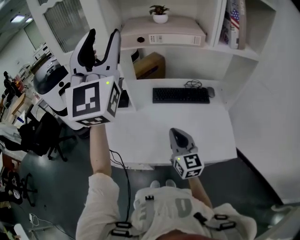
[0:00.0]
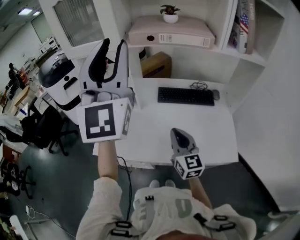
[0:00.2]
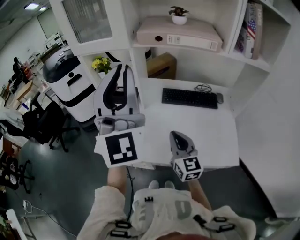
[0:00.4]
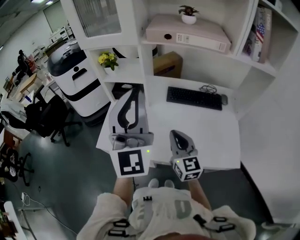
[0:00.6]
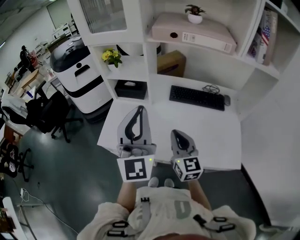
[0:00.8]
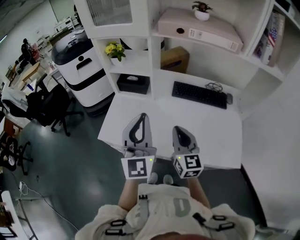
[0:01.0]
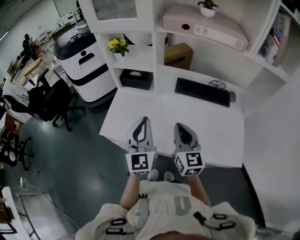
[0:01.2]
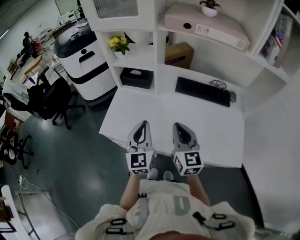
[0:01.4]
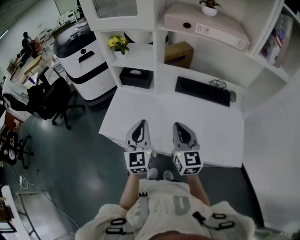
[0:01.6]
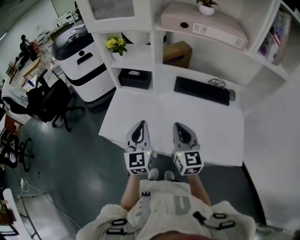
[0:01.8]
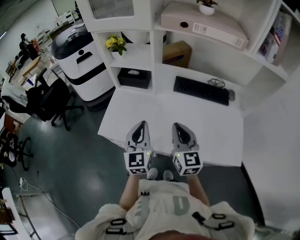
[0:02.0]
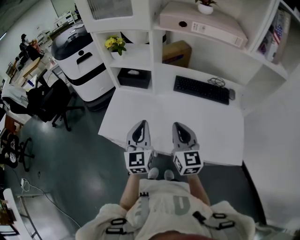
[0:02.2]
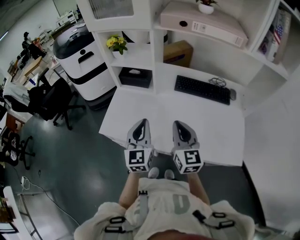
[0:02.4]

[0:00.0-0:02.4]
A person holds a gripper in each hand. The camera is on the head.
0:00.0 to 0:01.2: The left gripper heads downward, covering roughly 35 cm, rotates about 30 degrees, and closes. The right gripper is displaced to the left by about 5 cm.
0:01.2 to 0:02.4: The left gripper moves downward, roughly 5 cm.

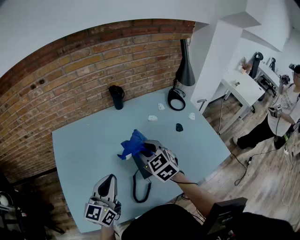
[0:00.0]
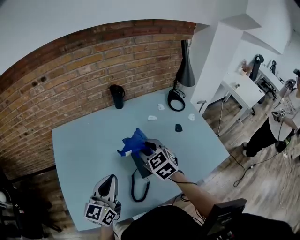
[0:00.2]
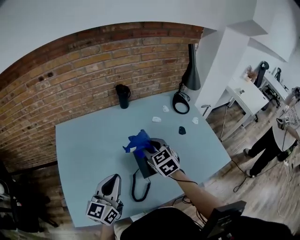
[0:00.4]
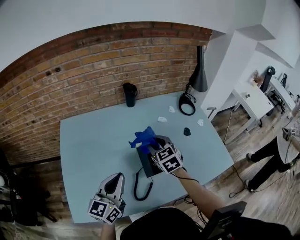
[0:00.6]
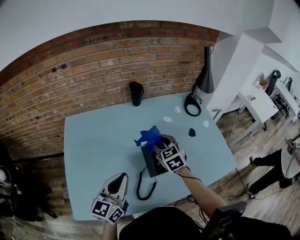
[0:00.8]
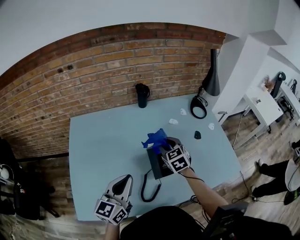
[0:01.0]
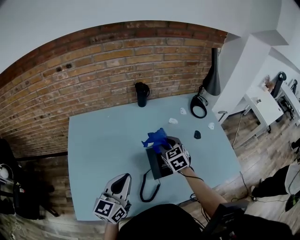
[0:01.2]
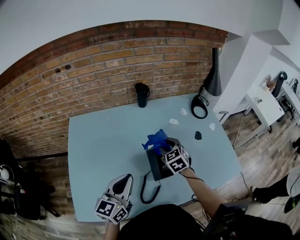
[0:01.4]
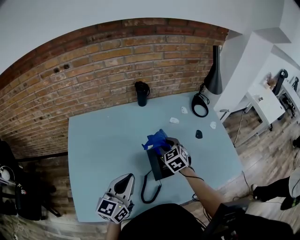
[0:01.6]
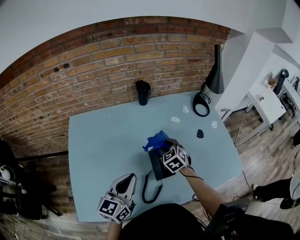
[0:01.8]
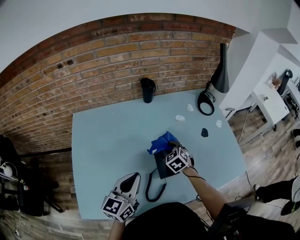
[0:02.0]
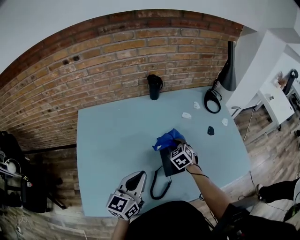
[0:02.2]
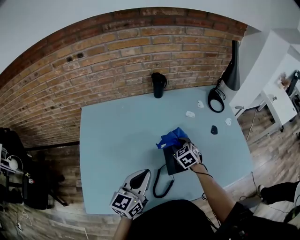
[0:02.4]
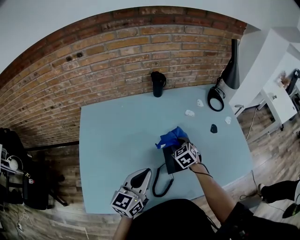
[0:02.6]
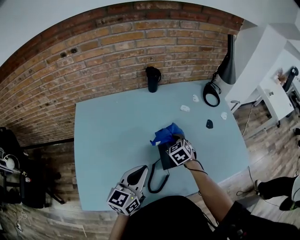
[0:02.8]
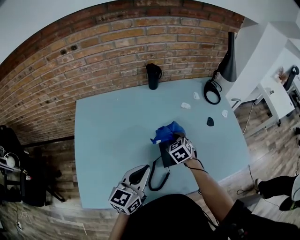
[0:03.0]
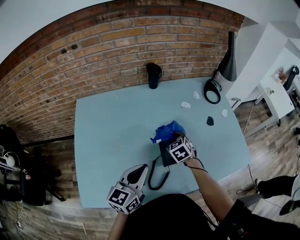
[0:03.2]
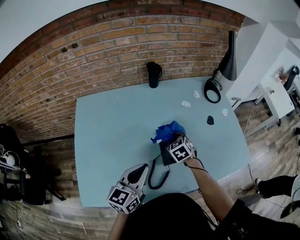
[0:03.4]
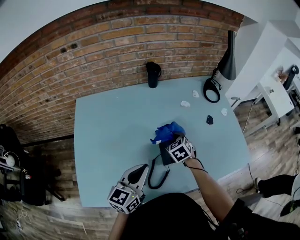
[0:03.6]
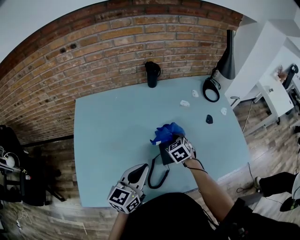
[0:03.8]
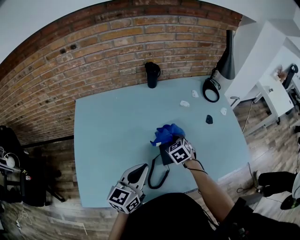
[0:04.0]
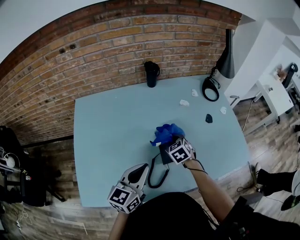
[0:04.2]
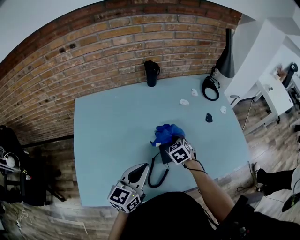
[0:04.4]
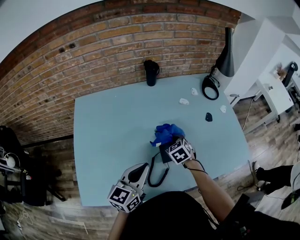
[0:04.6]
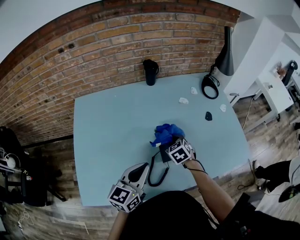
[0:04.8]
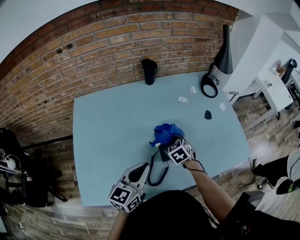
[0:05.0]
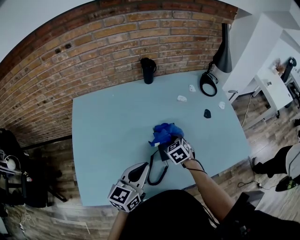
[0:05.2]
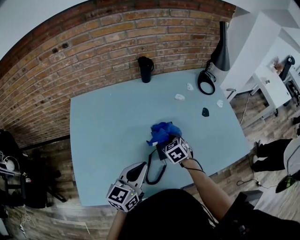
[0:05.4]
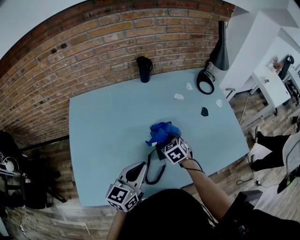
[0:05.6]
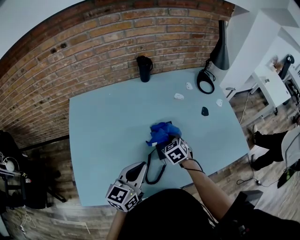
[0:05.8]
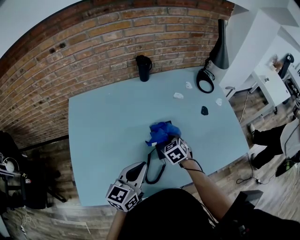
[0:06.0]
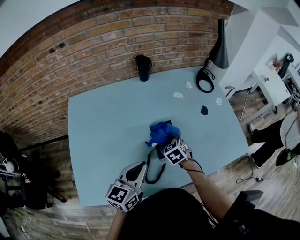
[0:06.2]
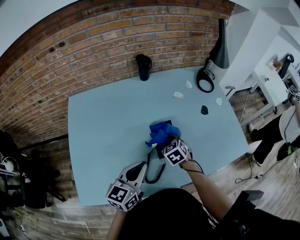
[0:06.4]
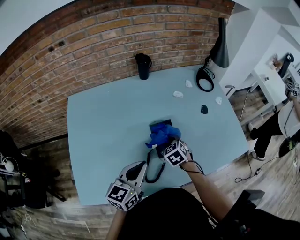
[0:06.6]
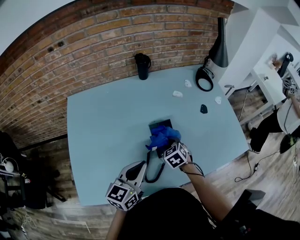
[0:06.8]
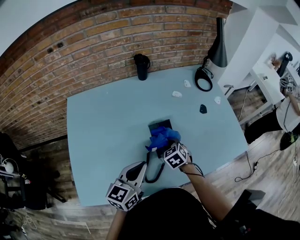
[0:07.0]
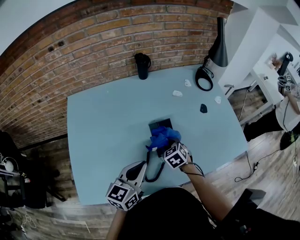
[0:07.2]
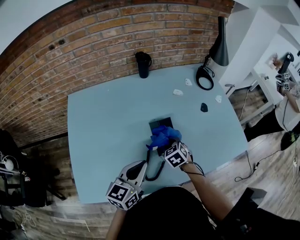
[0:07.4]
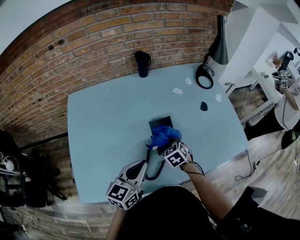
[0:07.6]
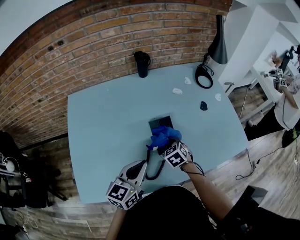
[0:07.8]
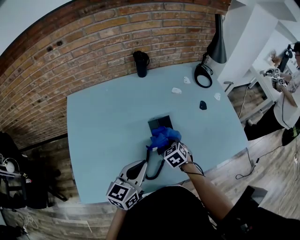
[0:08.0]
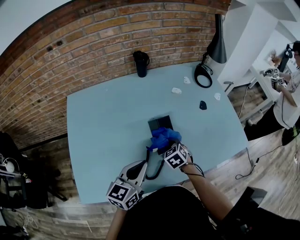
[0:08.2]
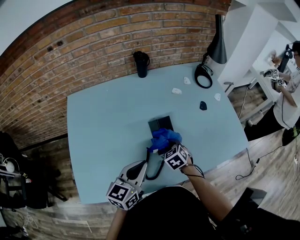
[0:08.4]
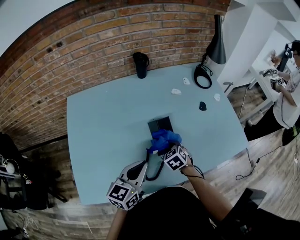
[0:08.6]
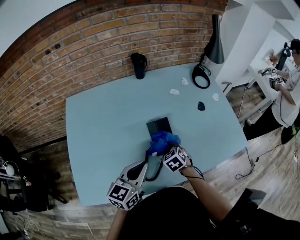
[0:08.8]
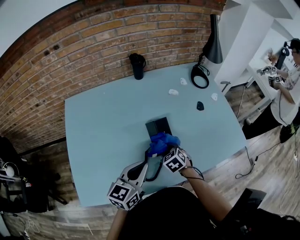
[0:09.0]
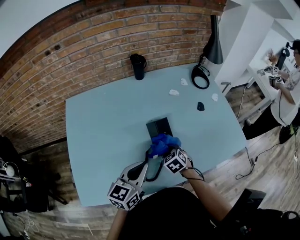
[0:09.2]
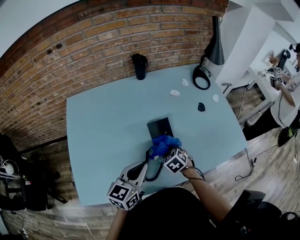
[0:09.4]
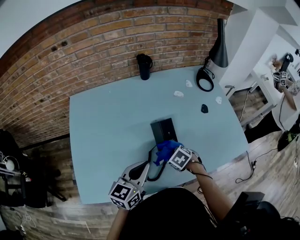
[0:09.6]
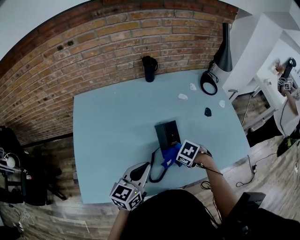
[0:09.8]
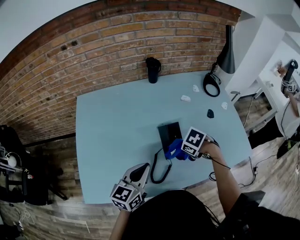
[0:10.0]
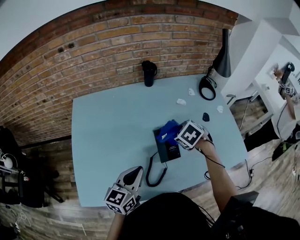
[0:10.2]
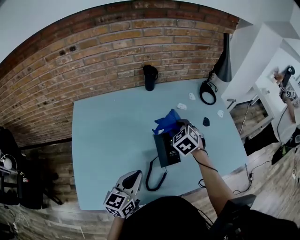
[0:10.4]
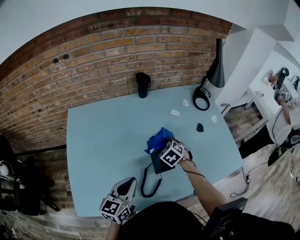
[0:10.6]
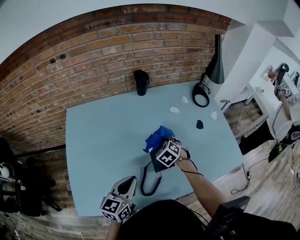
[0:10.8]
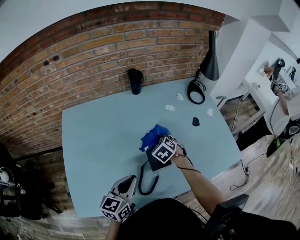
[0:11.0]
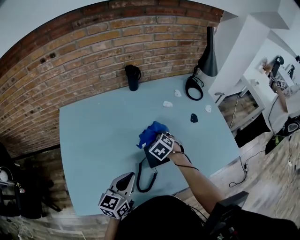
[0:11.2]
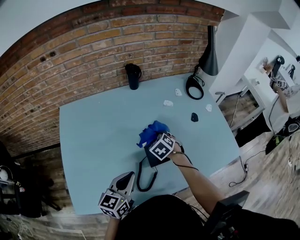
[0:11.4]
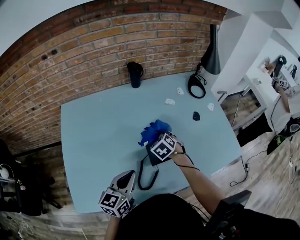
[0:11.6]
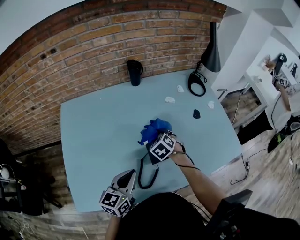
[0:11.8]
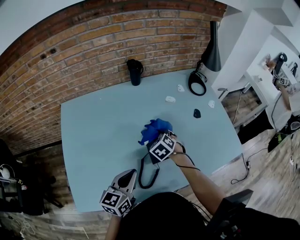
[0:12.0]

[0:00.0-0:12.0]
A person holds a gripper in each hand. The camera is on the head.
0:00.0 to 0:01.6: The right gripper shifts approximately 10 cm downward and forward.
0:01.6 to 0:03.0: The right gripper moves downward, roughly 10 cm.
0:03.0 to 0:06.0: The grippers make only small movements.
0:06.0 to 0:07.6: The grippers stay close to where they were, moving slightly.
0:07.6 to 0:09.0: There are only small adjustments of the grippers.
0:09.0 to 0:10.4: The left gripper changes place by roughly 5 cm; the right gripper is displaced upward by roughly 15 cm.
0:10.4 to 0:12.0: The right gripper goes about 10 cm downward.

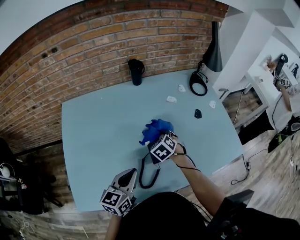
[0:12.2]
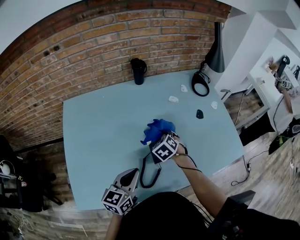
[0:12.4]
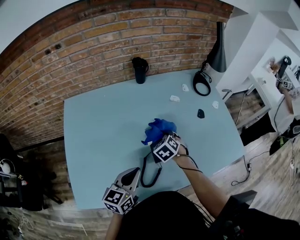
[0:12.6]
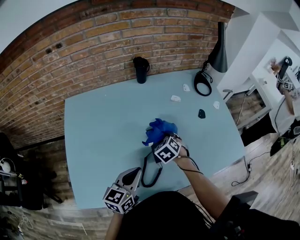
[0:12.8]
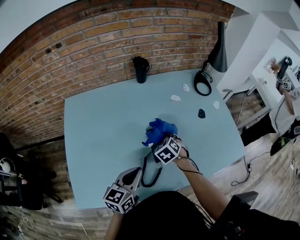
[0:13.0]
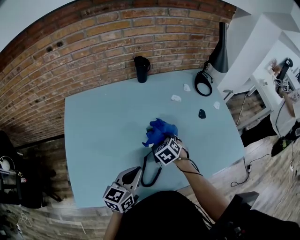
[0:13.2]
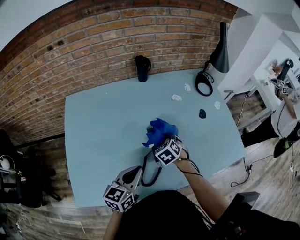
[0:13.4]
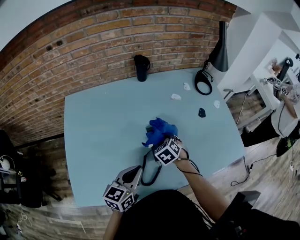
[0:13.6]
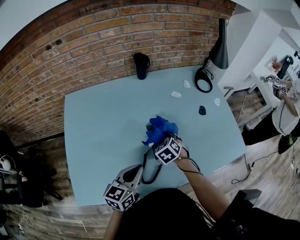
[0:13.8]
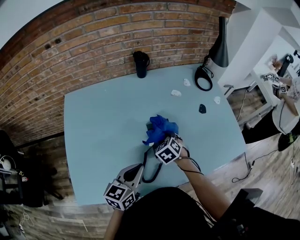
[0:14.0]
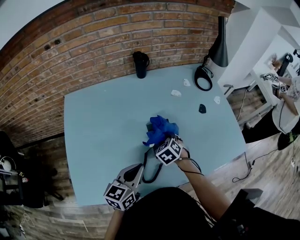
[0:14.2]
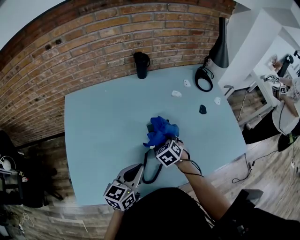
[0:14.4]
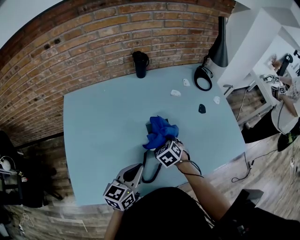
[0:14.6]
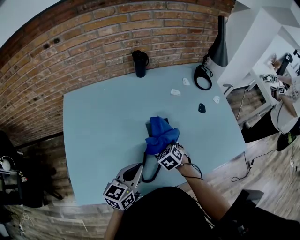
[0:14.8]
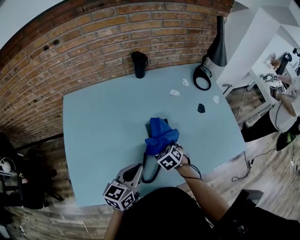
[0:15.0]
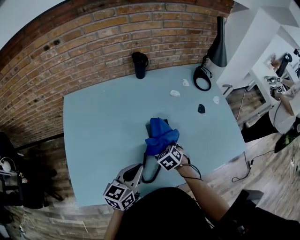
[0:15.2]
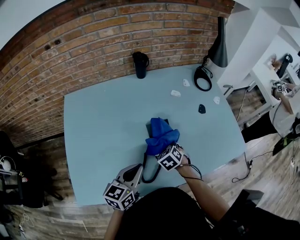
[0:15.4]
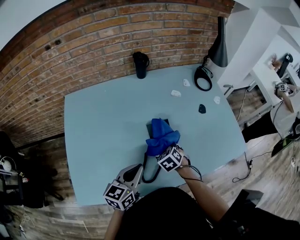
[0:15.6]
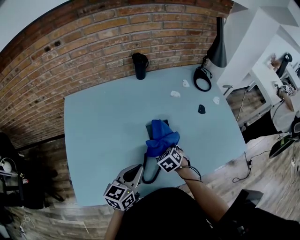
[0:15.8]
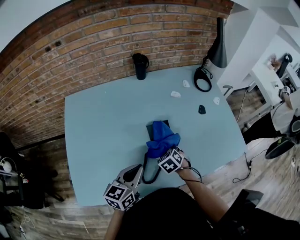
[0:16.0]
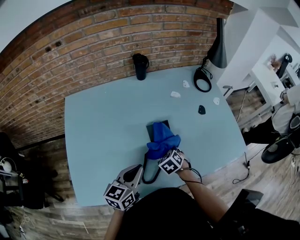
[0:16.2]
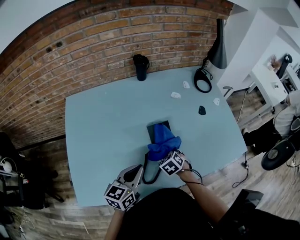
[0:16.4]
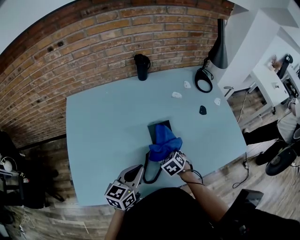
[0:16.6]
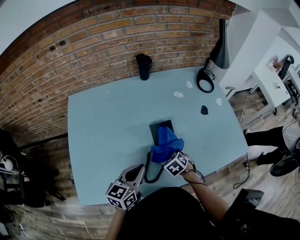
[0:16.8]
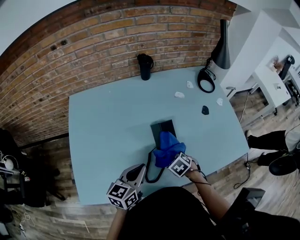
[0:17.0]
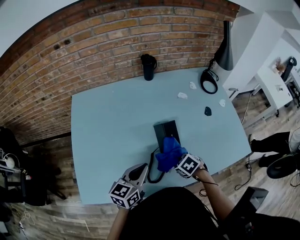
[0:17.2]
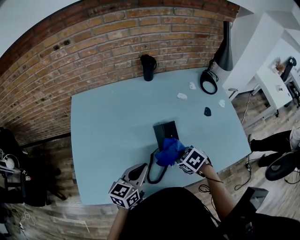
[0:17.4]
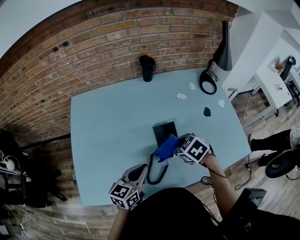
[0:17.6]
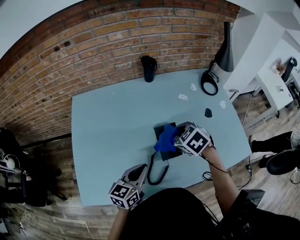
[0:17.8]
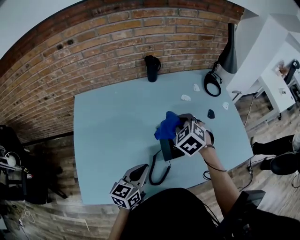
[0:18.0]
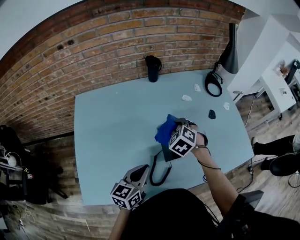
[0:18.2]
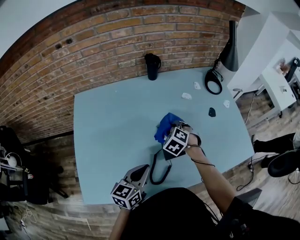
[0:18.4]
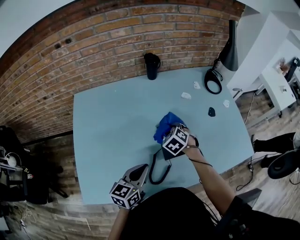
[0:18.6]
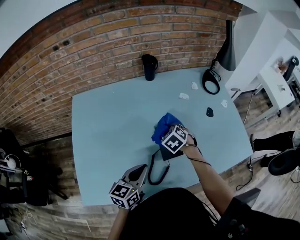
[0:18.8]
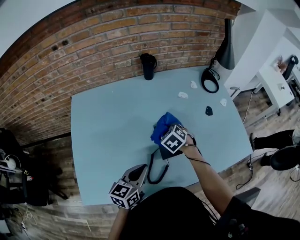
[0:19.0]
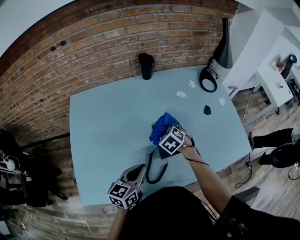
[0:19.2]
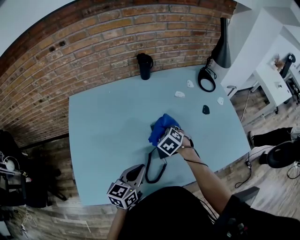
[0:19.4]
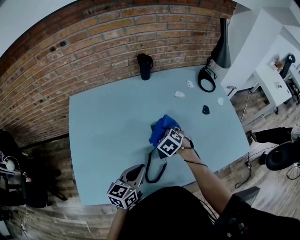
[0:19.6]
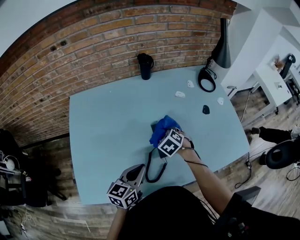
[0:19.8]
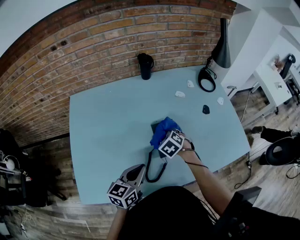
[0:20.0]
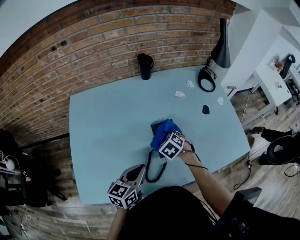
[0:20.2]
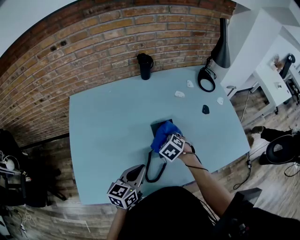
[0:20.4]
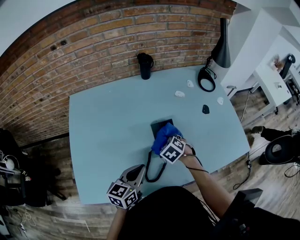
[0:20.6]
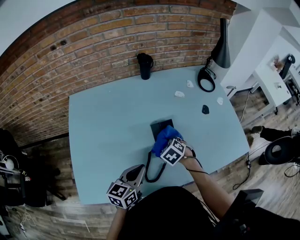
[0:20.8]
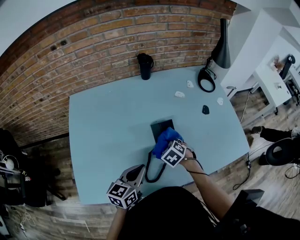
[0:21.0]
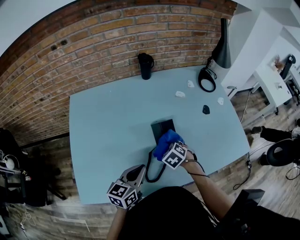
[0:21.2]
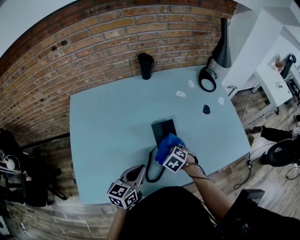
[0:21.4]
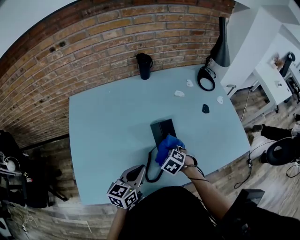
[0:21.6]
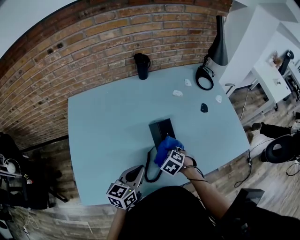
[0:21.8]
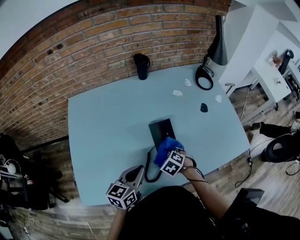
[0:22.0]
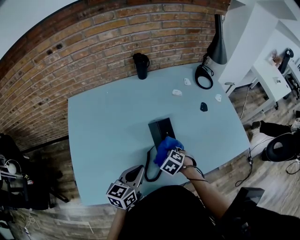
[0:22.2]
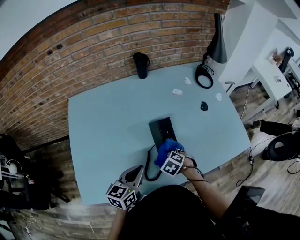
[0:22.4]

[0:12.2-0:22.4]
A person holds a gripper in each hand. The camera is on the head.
0:12.2 to 0:13.6: The grippers move only a little.
0:13.6 to 0:15.2: The right gripper shifts by roughly 5 cm.
0:15.2 to 0:16.6: The grippers make only small movements.
0:16.6 to 0:18.0: The right gripper travels upward and forward by some 25 cm, and rotates roughly 20 degrees.
0:18.0 to 0:19.4: The right gripper goes some 15 cm downward.
0:19.4 to 0:21.0: The right gripper goes some 5 cm backward.
0:21.0 to 0:22.4: The right gripper heads backward, covering approximately 5 cm.
